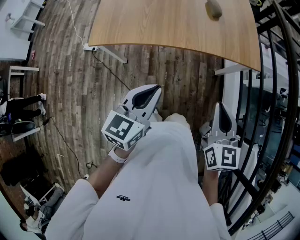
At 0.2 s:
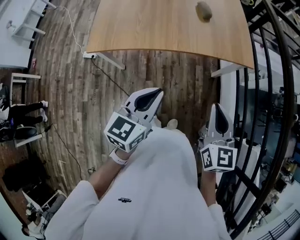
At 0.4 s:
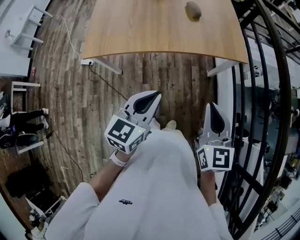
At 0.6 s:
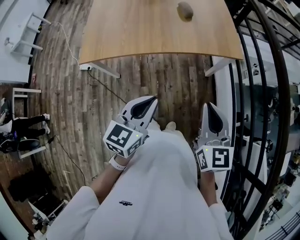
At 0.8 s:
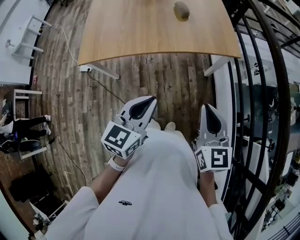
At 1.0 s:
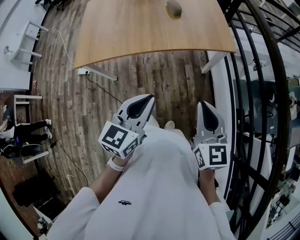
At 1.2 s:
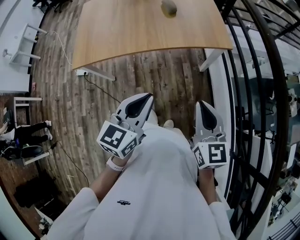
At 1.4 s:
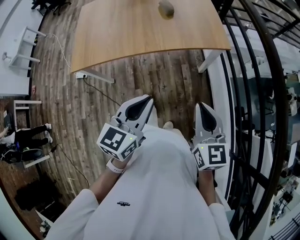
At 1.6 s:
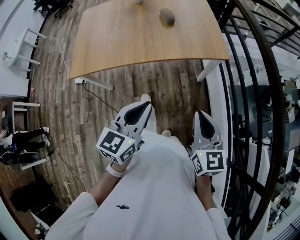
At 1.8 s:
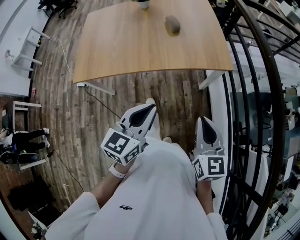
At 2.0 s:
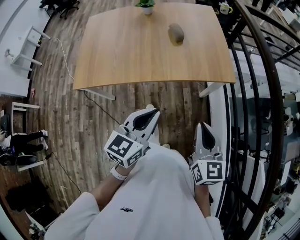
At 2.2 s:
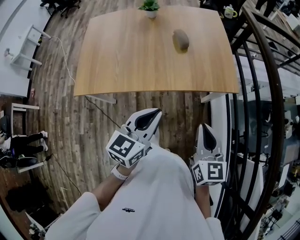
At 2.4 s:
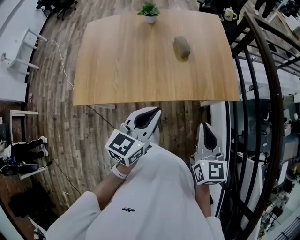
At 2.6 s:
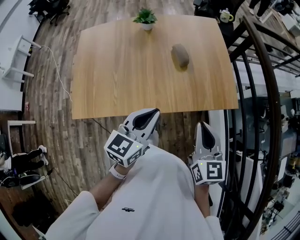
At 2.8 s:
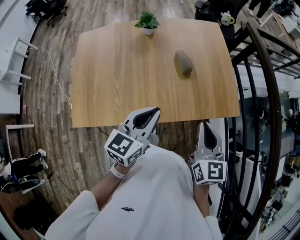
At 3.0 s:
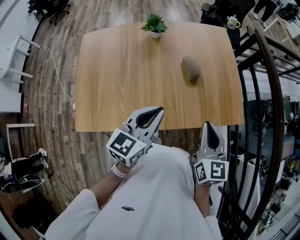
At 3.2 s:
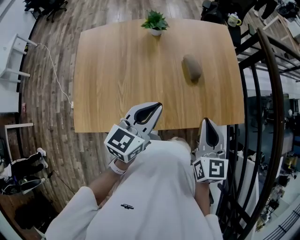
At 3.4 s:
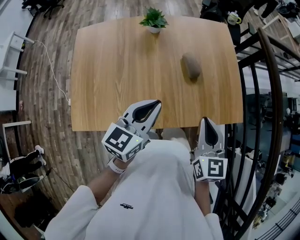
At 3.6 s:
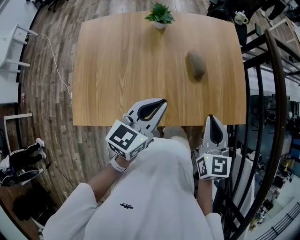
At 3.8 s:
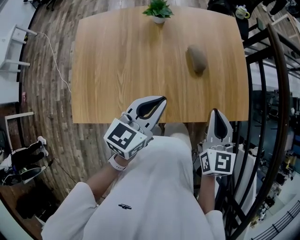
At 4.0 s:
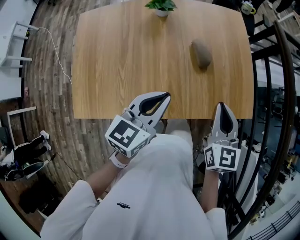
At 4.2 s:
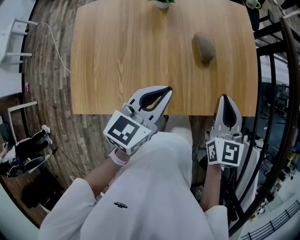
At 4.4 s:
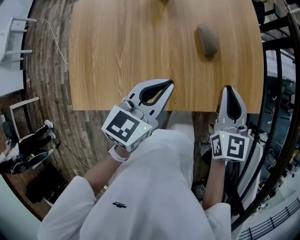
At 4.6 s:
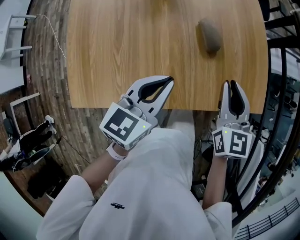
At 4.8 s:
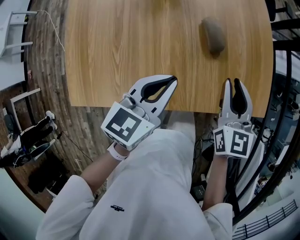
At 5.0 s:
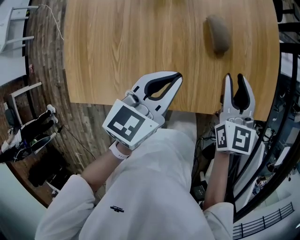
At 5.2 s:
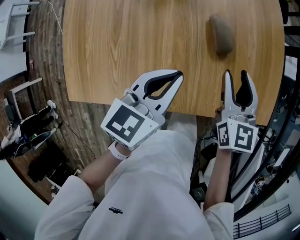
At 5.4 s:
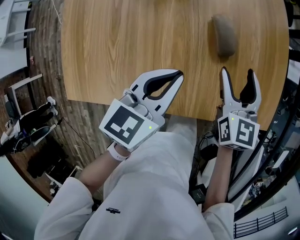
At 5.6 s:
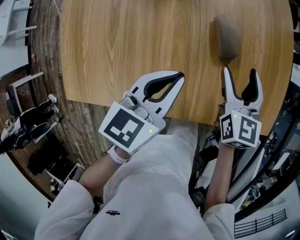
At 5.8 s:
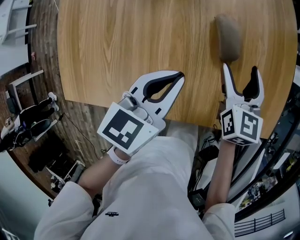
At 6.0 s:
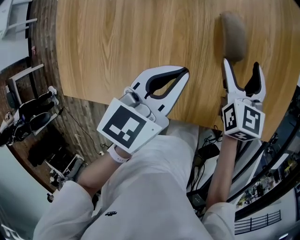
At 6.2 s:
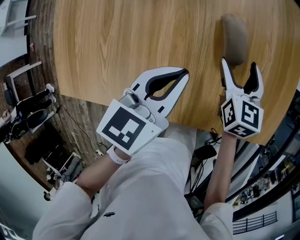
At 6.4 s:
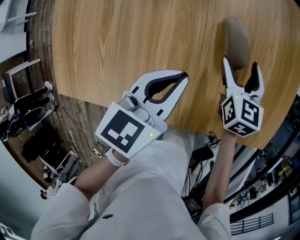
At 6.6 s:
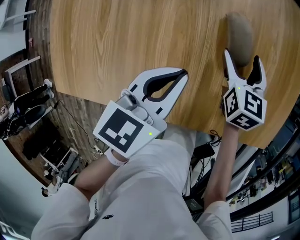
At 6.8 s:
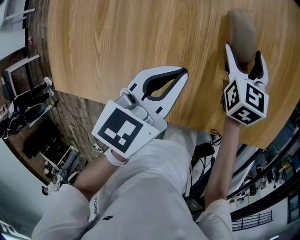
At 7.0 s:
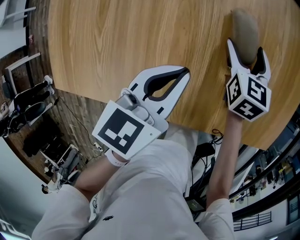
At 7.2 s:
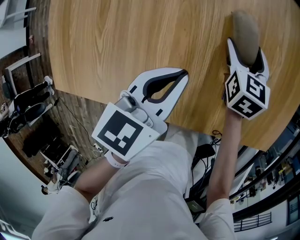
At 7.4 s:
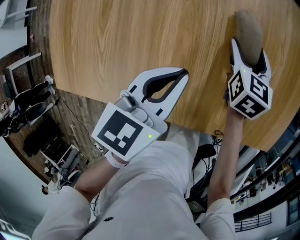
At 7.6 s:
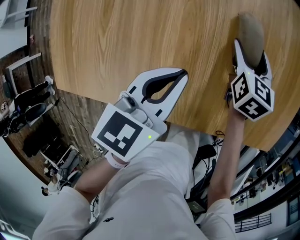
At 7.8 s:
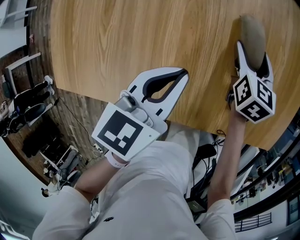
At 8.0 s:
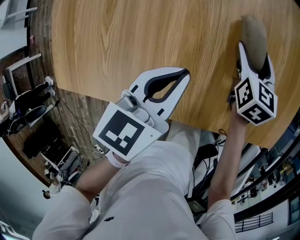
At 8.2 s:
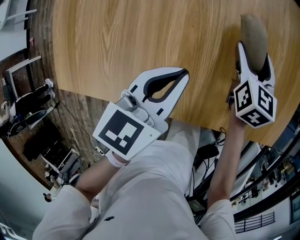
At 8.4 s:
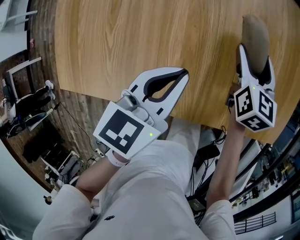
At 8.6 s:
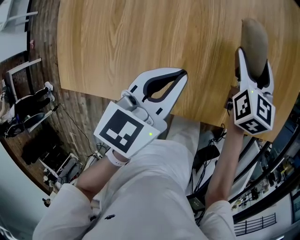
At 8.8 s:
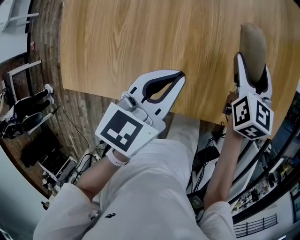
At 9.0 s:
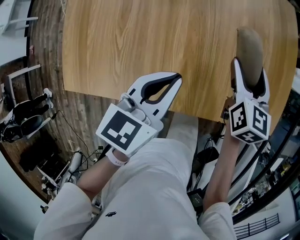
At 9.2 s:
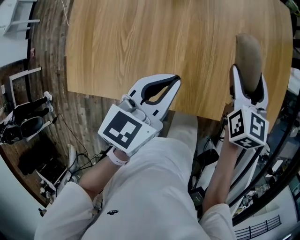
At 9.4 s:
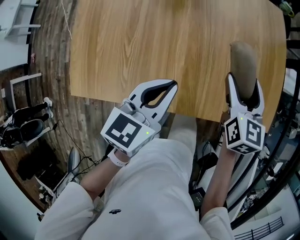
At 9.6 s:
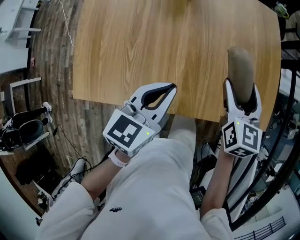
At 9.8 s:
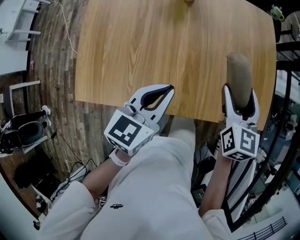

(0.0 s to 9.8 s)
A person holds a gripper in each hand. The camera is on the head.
0.0 s - 1.4 s: Both grippers move to the right, some 20 cm.
1.4 s - 2.8 s: The grippers both shift forward and to the left by roughly 40 cm.
2.8 s - 4.2 s: Both grippers move forward, approximately 10 cm.
4.2 s - 5.6 s: The grippers both shift downward and forward by roughly 20 cm. The right gripper opens.
5.6 s - 7.0 s: The right gripper moves downward and forward, roughly 15 cm; the left gripper moves downward, about 5 cm.
7.0 s - 8.4 s: The right gripper moves upward, about 5 cm; the left gripper moves approximately 5 cm.
8.4 s - 9.8 s: The right gripper travels upward and backward by approximately 25 cm. The left gripper is displaced upward and backward by roughly 15 cm.

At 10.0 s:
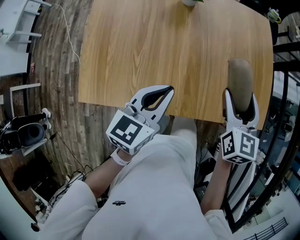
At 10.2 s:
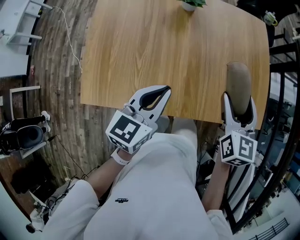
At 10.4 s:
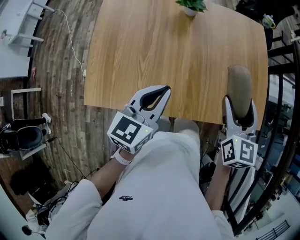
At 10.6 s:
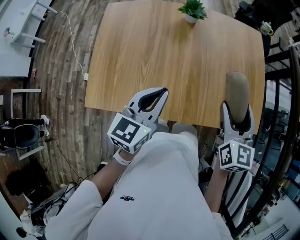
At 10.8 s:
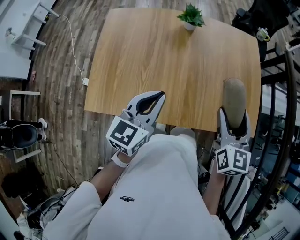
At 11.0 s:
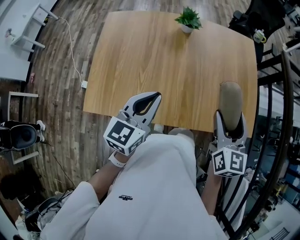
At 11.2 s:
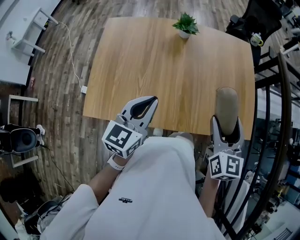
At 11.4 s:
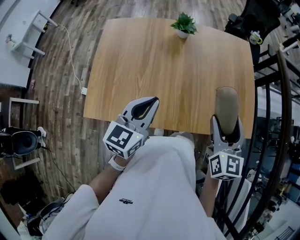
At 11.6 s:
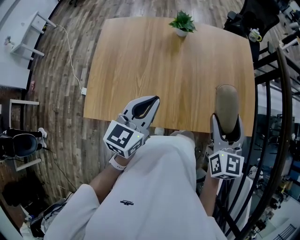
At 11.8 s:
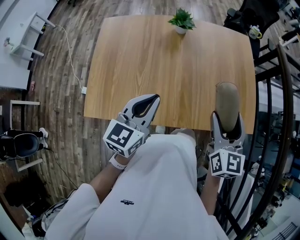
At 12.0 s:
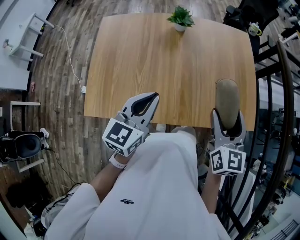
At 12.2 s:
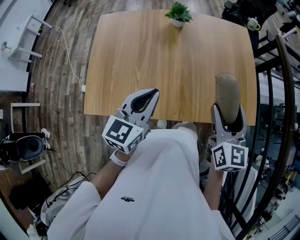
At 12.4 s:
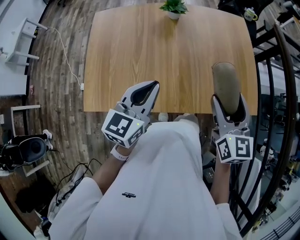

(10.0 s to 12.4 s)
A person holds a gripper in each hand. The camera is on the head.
10.0 s - 11.2 s: The left gripper goes some 10 cm upward and to the left. The right gripper is displaced upward and backward by some 15 cm.
11.2 s - 12.4 s: The grippers stay close to where they were, moving slightly.

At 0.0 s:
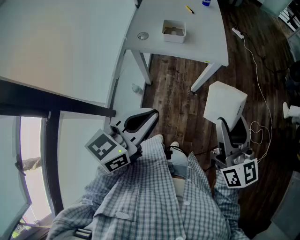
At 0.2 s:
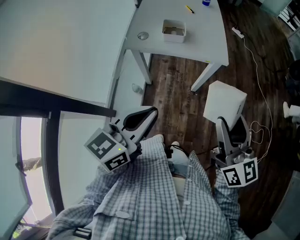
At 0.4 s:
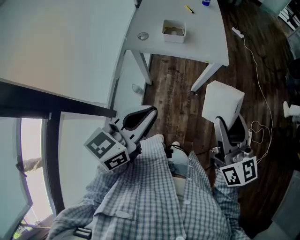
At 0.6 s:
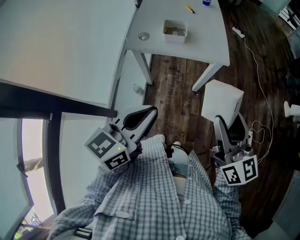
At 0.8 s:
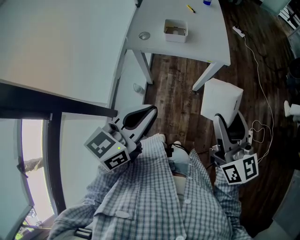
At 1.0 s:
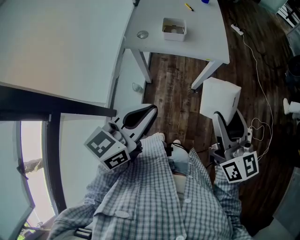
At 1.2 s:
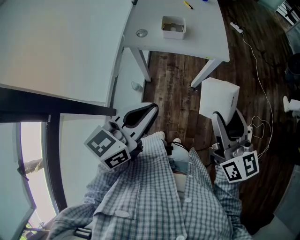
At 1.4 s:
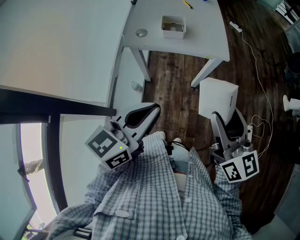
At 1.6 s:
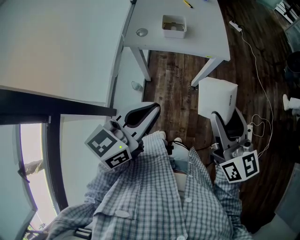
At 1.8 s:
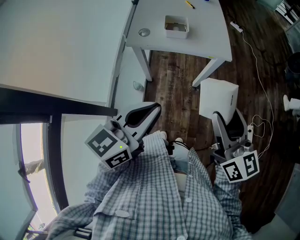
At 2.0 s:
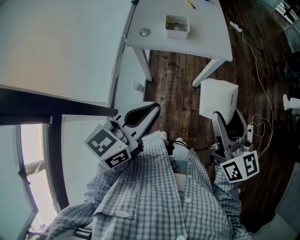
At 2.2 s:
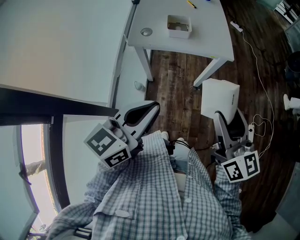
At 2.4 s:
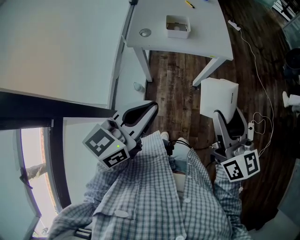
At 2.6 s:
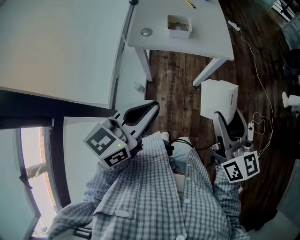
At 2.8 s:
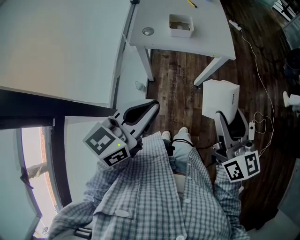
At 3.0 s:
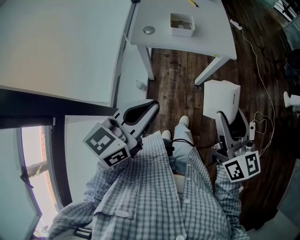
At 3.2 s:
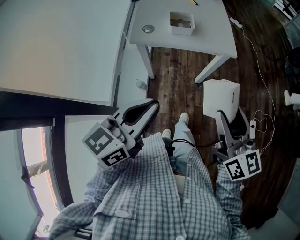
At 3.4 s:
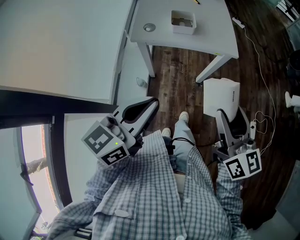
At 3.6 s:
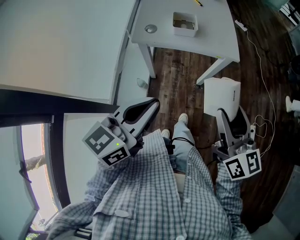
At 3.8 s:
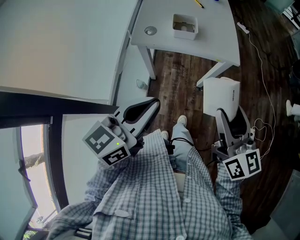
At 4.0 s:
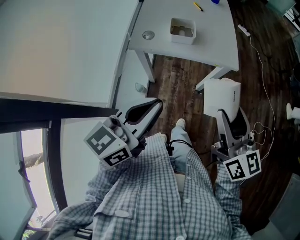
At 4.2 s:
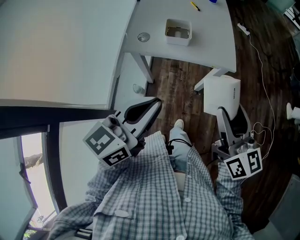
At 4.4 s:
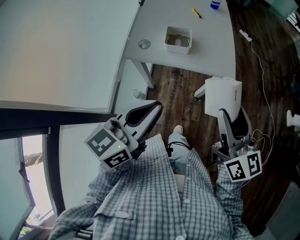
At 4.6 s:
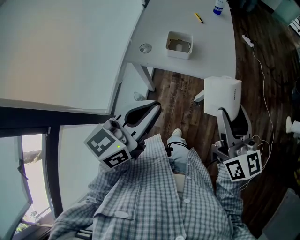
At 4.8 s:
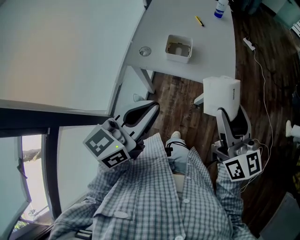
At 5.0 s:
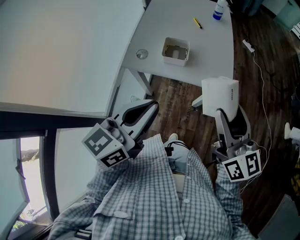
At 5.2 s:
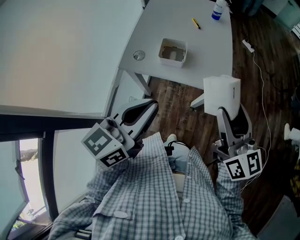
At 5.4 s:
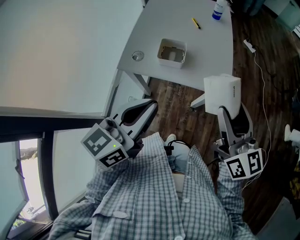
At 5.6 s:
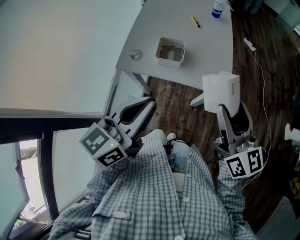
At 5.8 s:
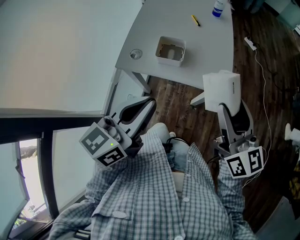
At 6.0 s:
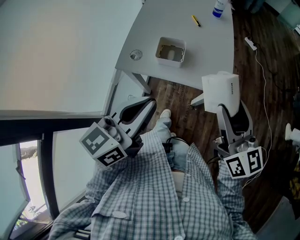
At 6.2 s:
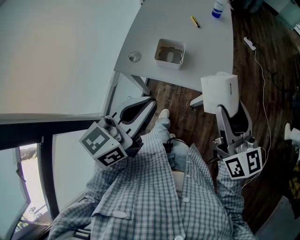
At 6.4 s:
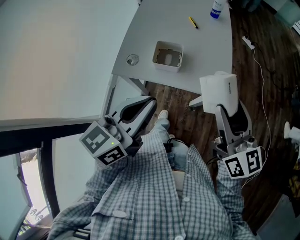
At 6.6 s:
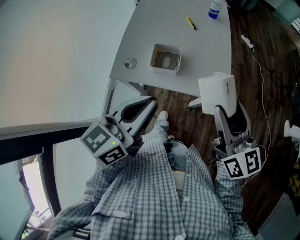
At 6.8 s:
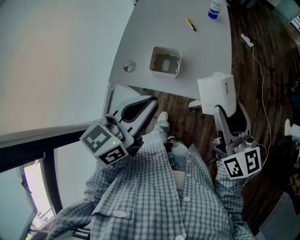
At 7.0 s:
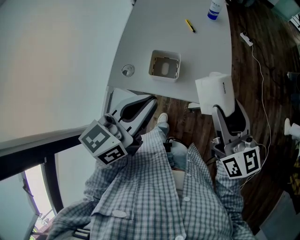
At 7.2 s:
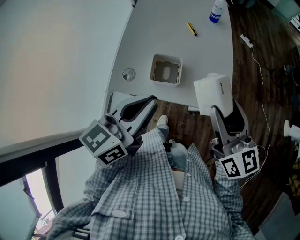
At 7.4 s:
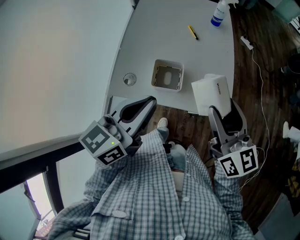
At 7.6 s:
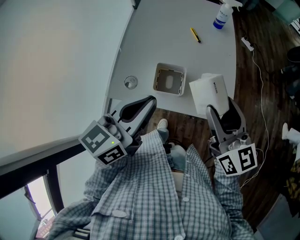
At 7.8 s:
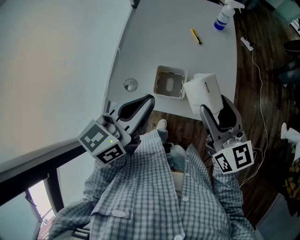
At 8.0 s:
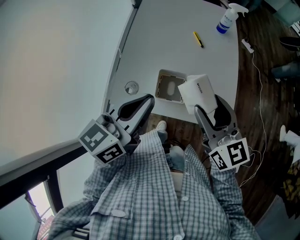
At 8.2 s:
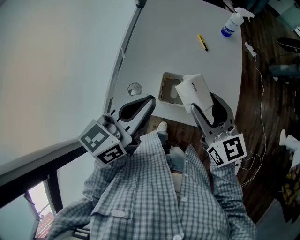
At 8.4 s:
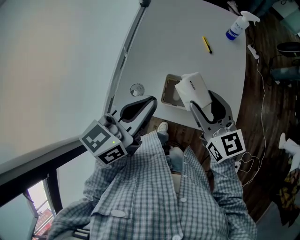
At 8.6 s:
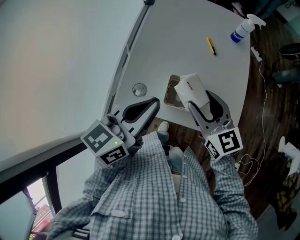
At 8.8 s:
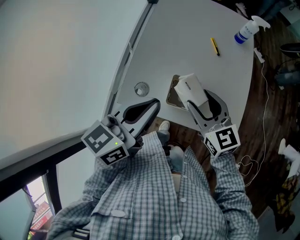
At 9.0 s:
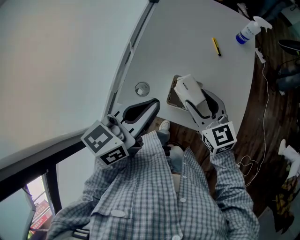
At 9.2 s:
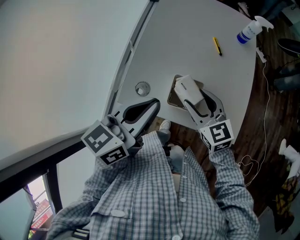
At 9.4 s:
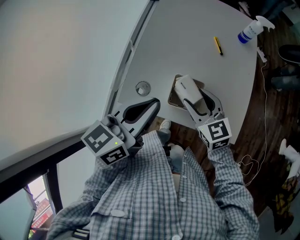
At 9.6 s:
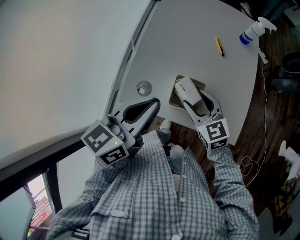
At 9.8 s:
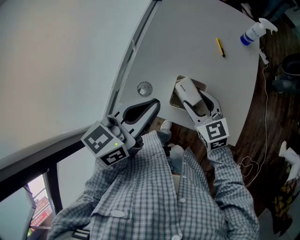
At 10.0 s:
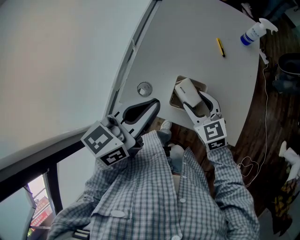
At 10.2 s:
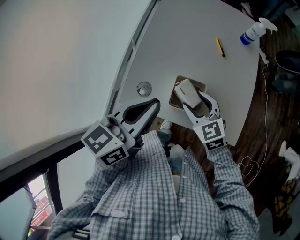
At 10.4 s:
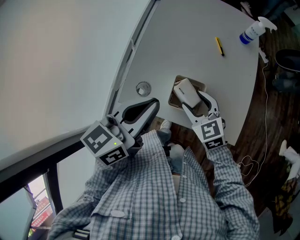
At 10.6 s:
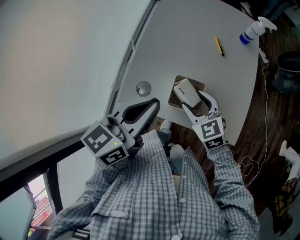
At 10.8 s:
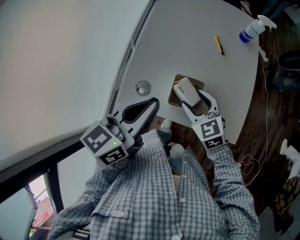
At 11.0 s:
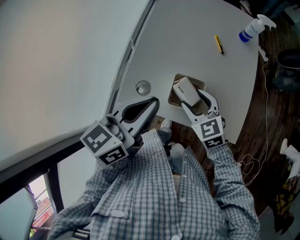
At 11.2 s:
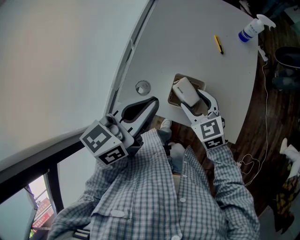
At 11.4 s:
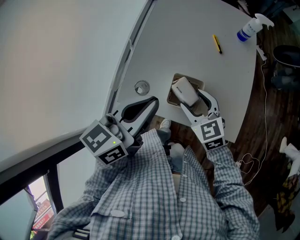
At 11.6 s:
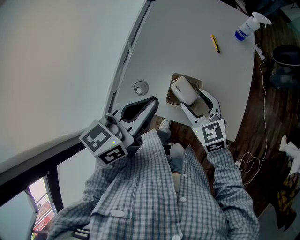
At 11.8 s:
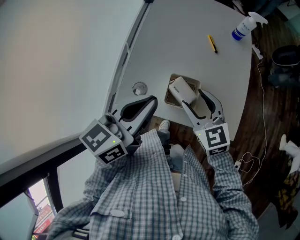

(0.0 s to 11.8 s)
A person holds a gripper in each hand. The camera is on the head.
0.0 s - 1.4 s: There are only small adjustments of the grippers.
1.4 s - 3.0 s: The left gripper moves to the left, roughly 5 cm.
3.0 s - 4.4 s: The left gripper goes roughly 10 cm forward and to the right; the right gripper goes about 15 cm forward.
4.4 s - 6.0 s: Both grippers travel together forward, some 10 cm.
6.0 s - 7.4 s: The two grippers go some 10 cm forward.
7.4 s - 8.8 s: The left gripper shifts roughly 10 cm forward and to the left. Meanwhile the right gripper travels to the left, downward and forward by approximately 20 cm, and swivels some 30 degrees.
8.8 s - 10.4 s: The right gripper shifts some 10 cm downward.
10.4 s - 11.8 s: The right gripper goes approximately 5 cm upward.
